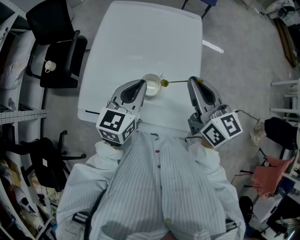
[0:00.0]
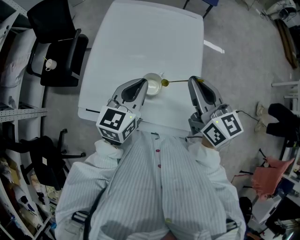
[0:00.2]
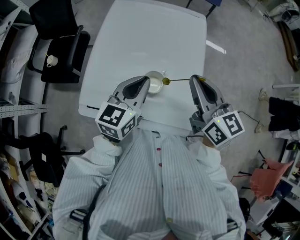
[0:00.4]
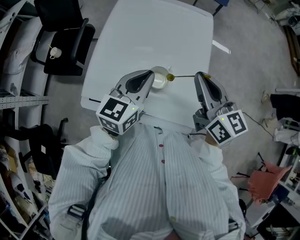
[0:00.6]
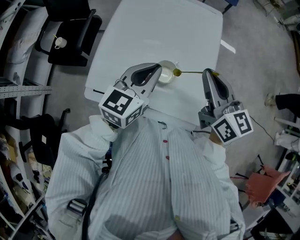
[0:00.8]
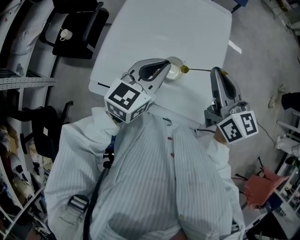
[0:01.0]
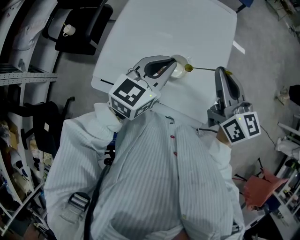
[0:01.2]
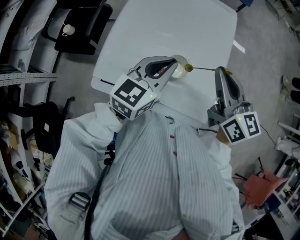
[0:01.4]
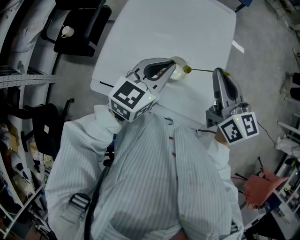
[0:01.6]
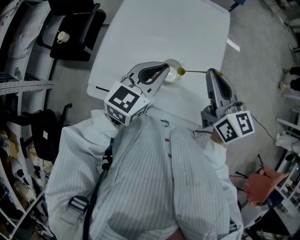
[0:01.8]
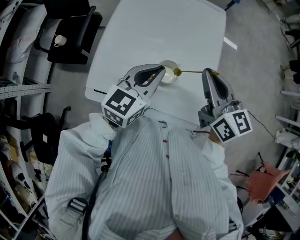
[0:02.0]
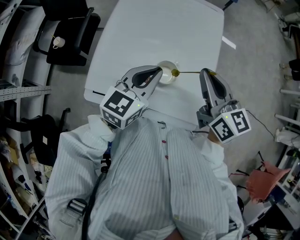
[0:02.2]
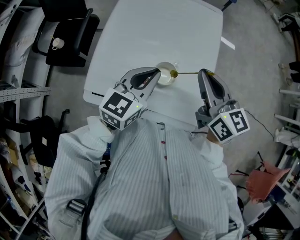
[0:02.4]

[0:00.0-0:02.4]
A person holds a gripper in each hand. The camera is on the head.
0:00.0 to 0:02.4: The grippers make only small movements.

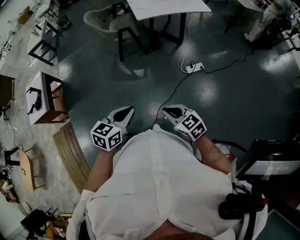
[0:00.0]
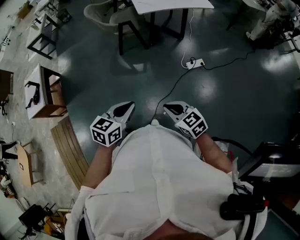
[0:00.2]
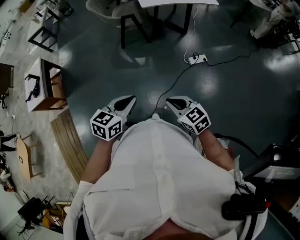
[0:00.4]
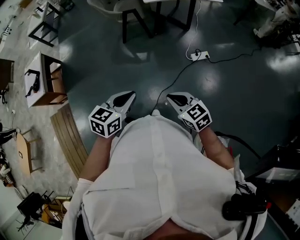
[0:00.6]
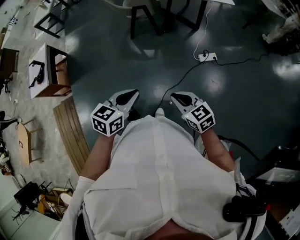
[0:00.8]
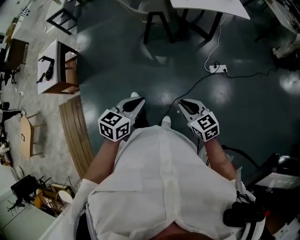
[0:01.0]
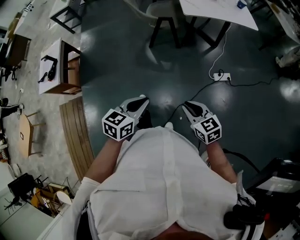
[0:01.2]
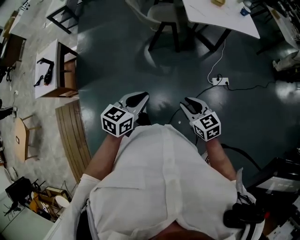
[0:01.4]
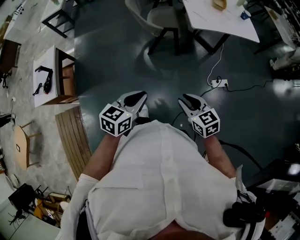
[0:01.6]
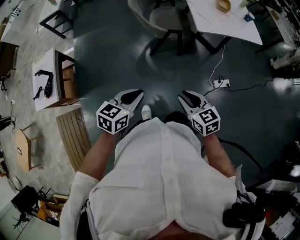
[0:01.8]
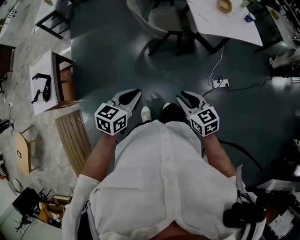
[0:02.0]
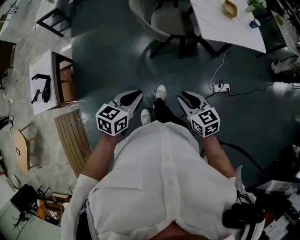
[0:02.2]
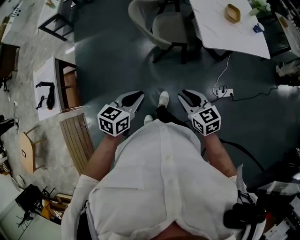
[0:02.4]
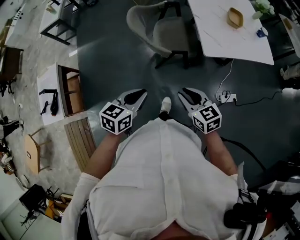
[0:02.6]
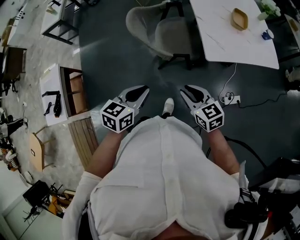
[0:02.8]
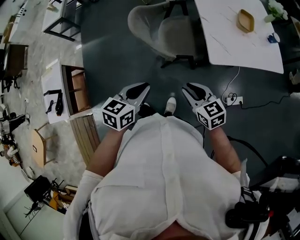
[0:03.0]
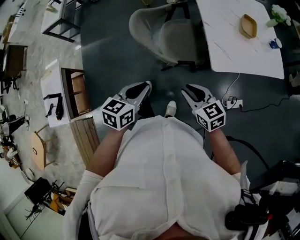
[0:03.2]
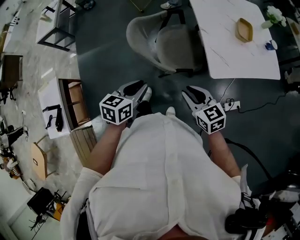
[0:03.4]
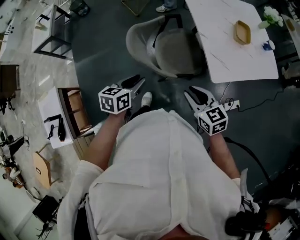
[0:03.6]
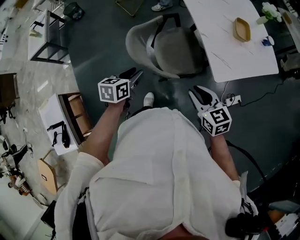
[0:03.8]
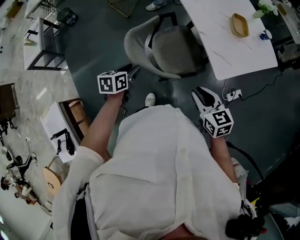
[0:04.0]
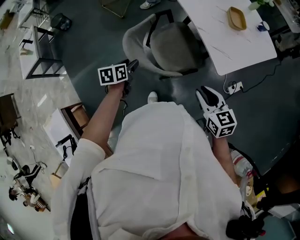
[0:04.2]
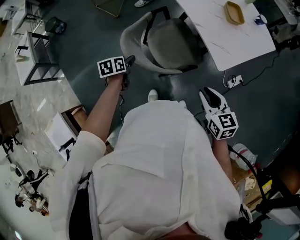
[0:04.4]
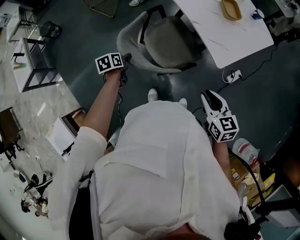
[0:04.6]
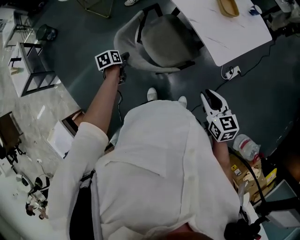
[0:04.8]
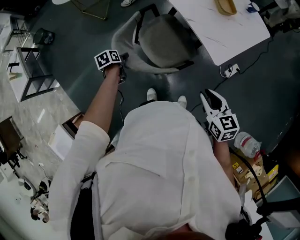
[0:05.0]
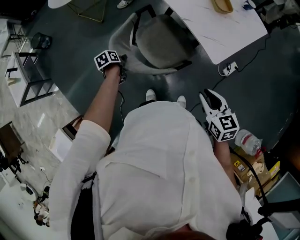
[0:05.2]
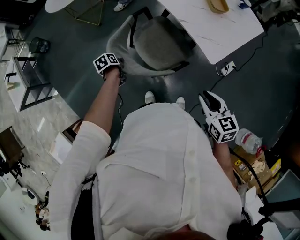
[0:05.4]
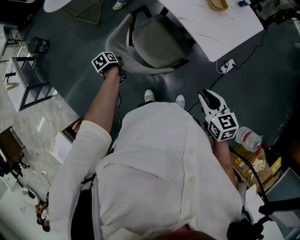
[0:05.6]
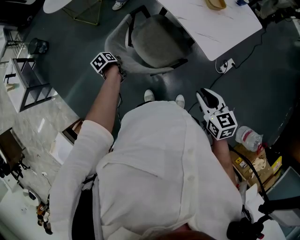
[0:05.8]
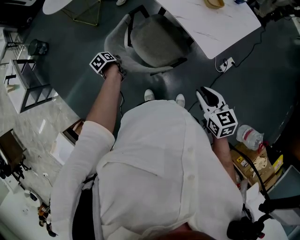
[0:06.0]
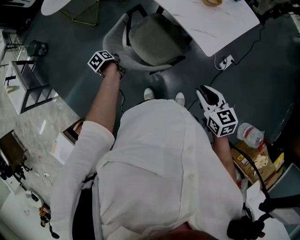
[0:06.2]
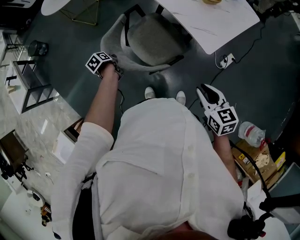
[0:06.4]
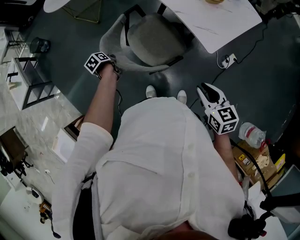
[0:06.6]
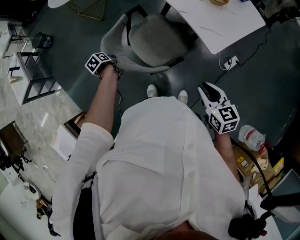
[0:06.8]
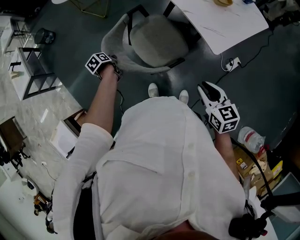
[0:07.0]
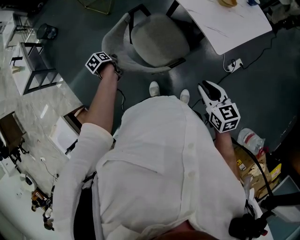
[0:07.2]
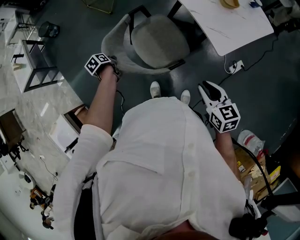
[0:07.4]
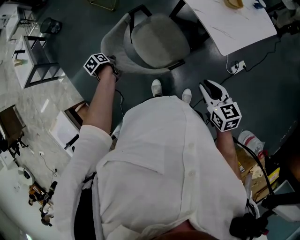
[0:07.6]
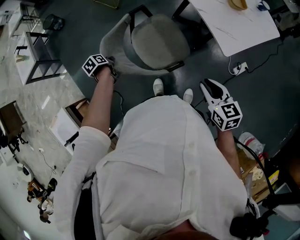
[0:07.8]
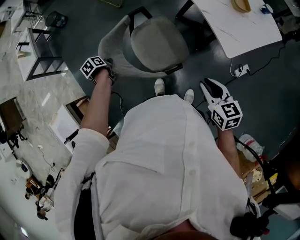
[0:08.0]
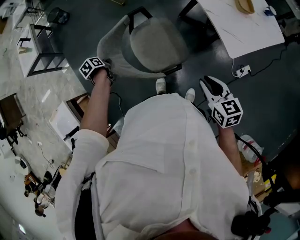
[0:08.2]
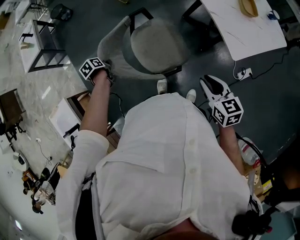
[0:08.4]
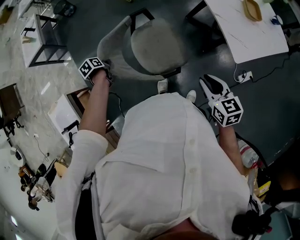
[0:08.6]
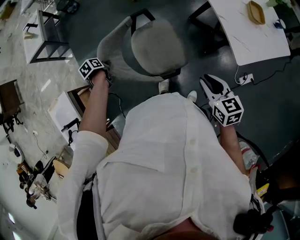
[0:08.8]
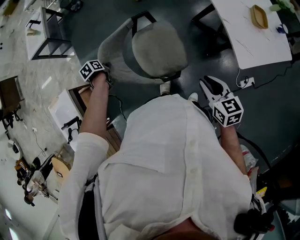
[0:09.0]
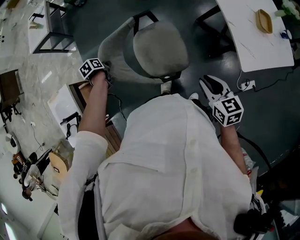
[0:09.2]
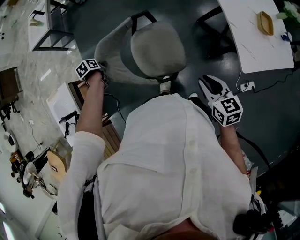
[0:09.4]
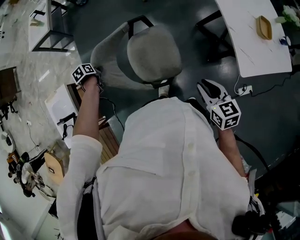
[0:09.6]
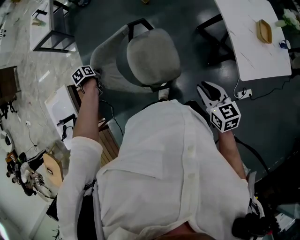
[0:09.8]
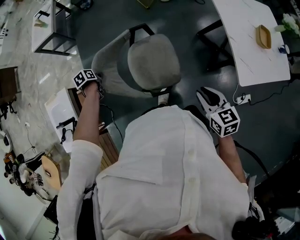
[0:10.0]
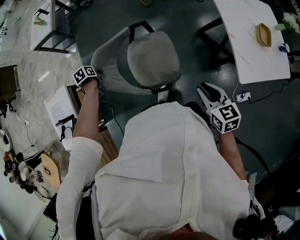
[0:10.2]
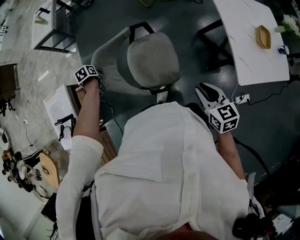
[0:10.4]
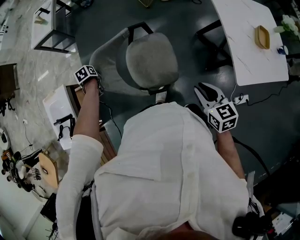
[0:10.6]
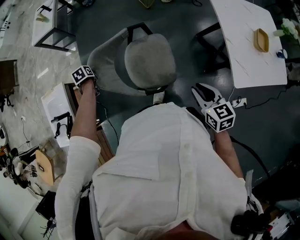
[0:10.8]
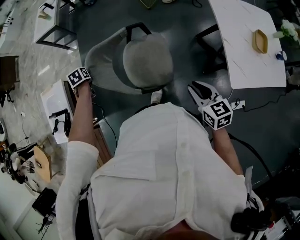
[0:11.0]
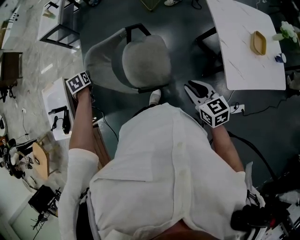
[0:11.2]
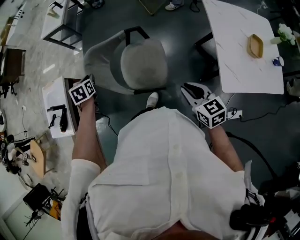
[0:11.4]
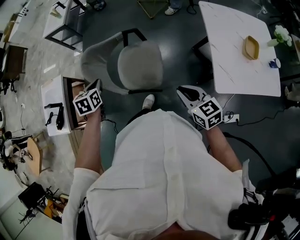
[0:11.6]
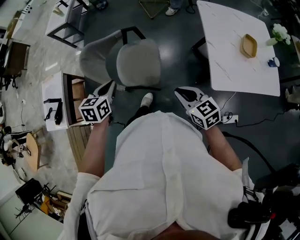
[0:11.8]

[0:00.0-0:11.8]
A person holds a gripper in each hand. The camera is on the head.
0:00.0 to 0:01.4: Both grippers move forward and to the left, some 20 cm.
0:01.4 to 0:03.0: The two grippers travel together, forward, roughly 40 cm.
0:03.0 to 0:04.4: The right gripper goes about 10 cm forward, and changes its angle by some 40 degrees. The left gripper goes about 40 cm forward, to the left and downward, changes its angle by roughly 20 degrees, and opens up.
0:04.4 to 0:06.0: The left gripper shifts approximately 10 cm downward, swivels approximately 30 degrees, and closes its fingers.
0:06.0 to 0:07.4: The left gripper moves to the left and backward, some 10 cm.
0:07.4 to 0:08.8: The right gripper is displaced to the left by some 5 cm; the left gripper heads to the left and backward, covering some 15 cm.
0:08.8 to 0:10.4: The right gripper shifts by roughly 5 cm, while the left gripper goes roughly 10 cm to the left.
0:10.4 to 0:11.8: The right gripper ends up some 10 cm from where it was, and rotates some 20 degrees; the left gripper ends up approximately 40 cm from where it was, and angles its fingers upward, by some 30 degrees.

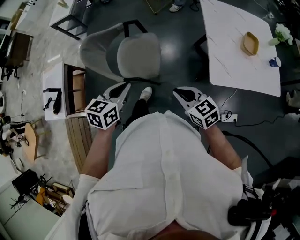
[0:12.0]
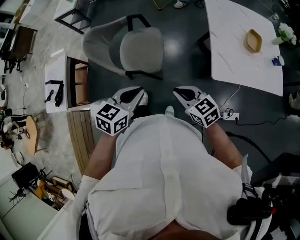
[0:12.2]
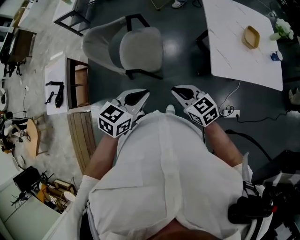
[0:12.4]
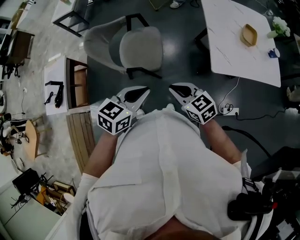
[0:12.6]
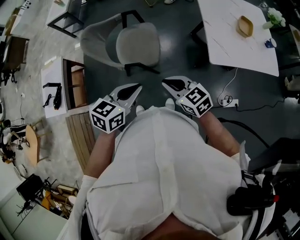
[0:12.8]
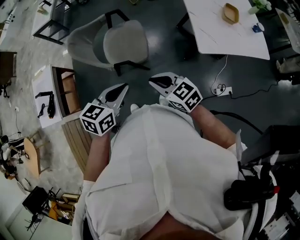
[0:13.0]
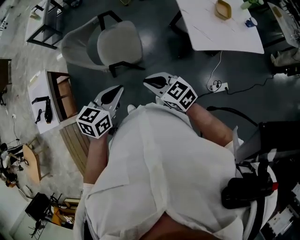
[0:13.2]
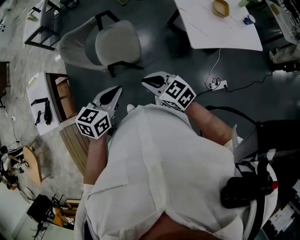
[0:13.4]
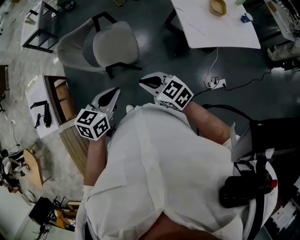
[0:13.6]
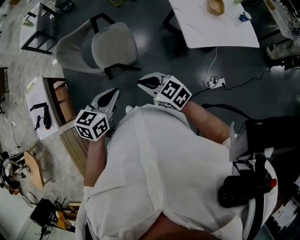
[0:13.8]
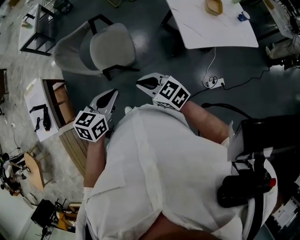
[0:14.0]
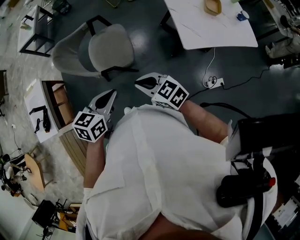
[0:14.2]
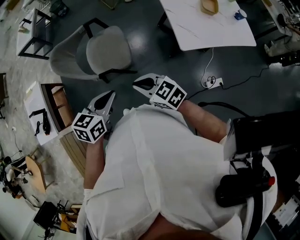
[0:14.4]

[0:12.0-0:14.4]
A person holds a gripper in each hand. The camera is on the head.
0:12.0 to 0:13.2: The right gripper travels to the left and backward by approximately 15 cm. Meanwhile the left gripper is displaced backward by approximately 10 cm.
0:13.2 to 0:14.4: The grippers stay close to where they were, moving slightly.

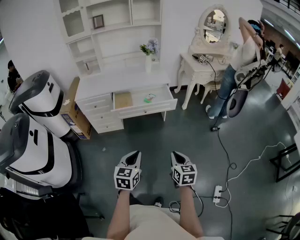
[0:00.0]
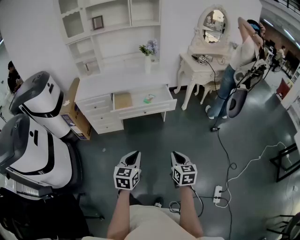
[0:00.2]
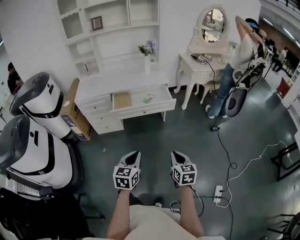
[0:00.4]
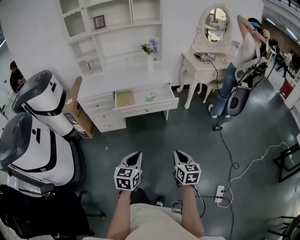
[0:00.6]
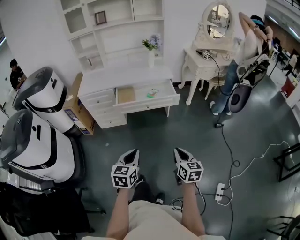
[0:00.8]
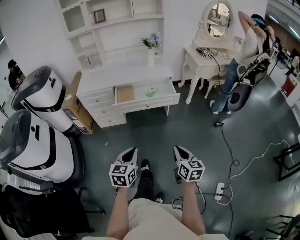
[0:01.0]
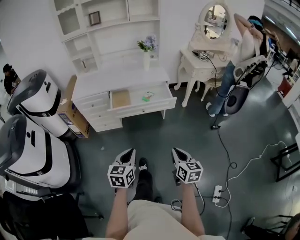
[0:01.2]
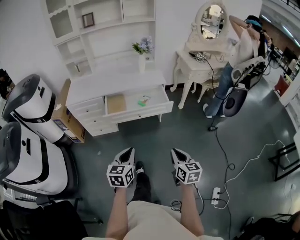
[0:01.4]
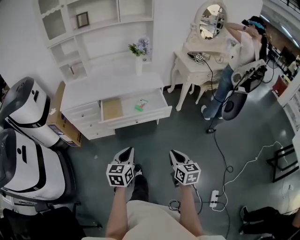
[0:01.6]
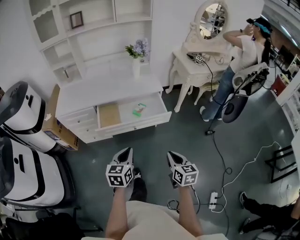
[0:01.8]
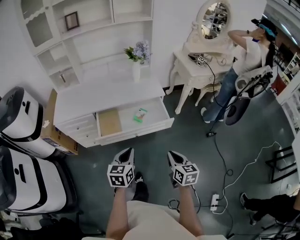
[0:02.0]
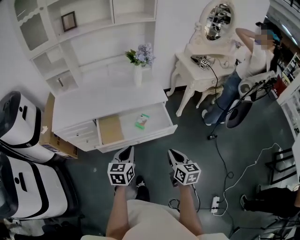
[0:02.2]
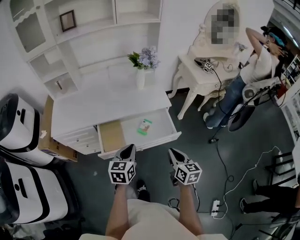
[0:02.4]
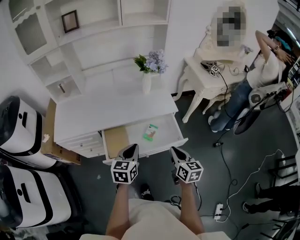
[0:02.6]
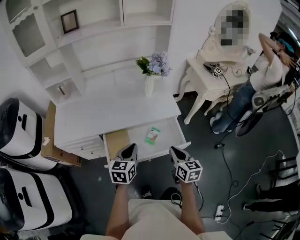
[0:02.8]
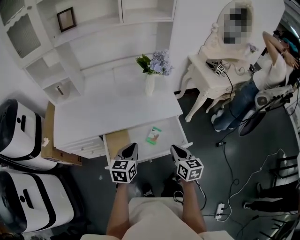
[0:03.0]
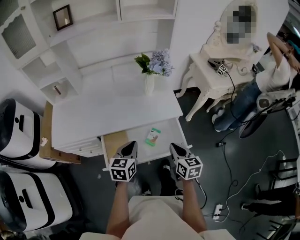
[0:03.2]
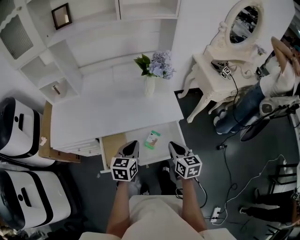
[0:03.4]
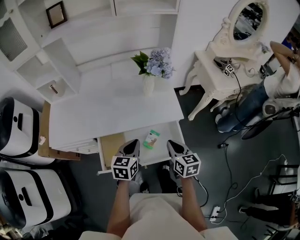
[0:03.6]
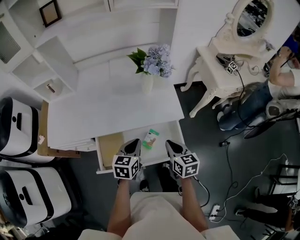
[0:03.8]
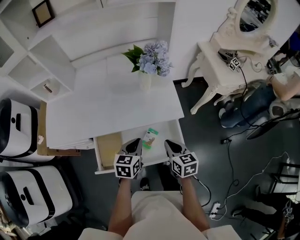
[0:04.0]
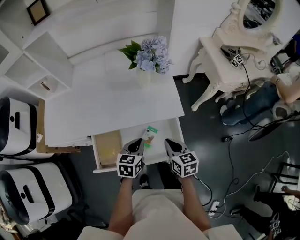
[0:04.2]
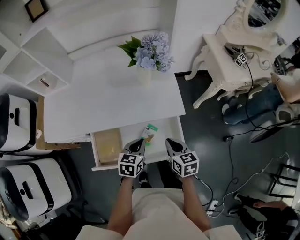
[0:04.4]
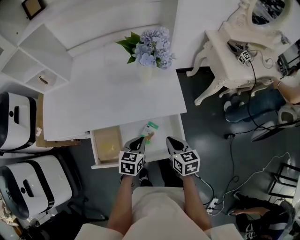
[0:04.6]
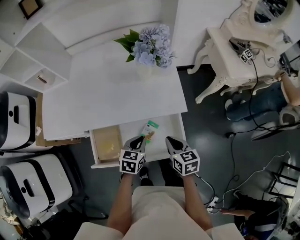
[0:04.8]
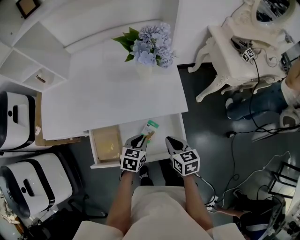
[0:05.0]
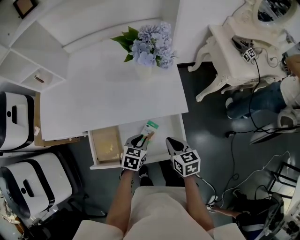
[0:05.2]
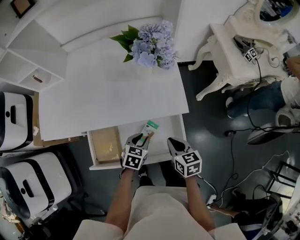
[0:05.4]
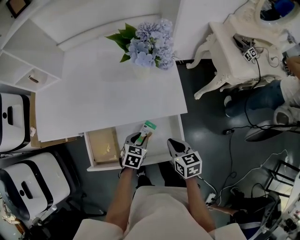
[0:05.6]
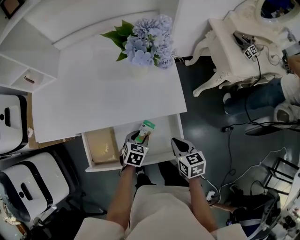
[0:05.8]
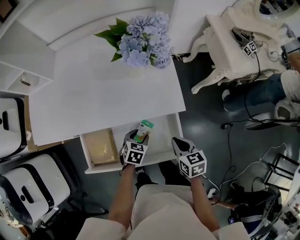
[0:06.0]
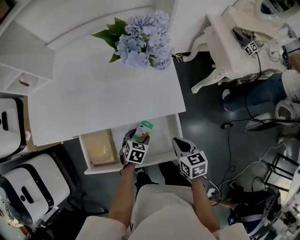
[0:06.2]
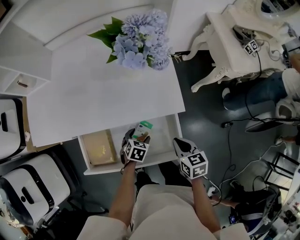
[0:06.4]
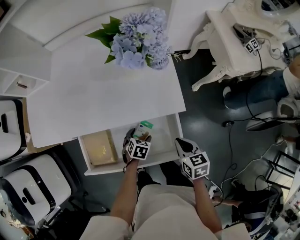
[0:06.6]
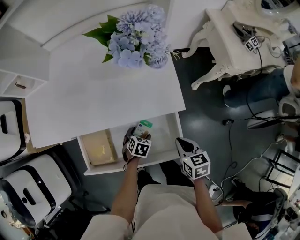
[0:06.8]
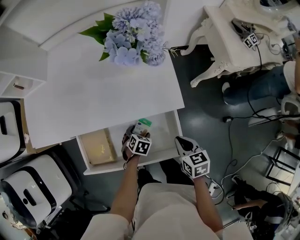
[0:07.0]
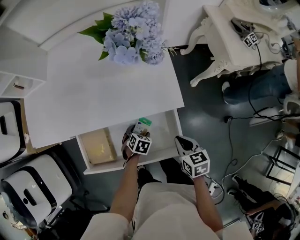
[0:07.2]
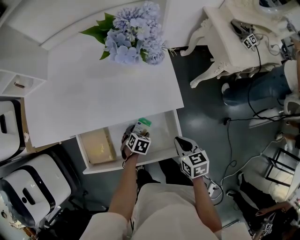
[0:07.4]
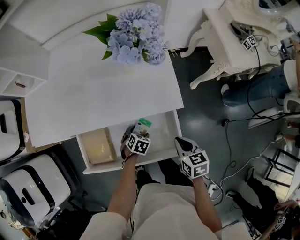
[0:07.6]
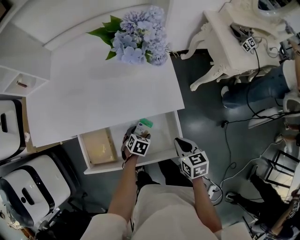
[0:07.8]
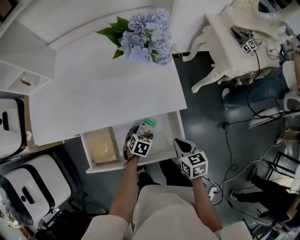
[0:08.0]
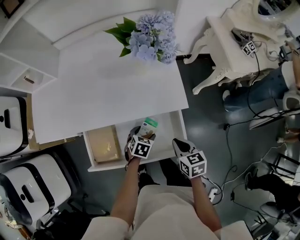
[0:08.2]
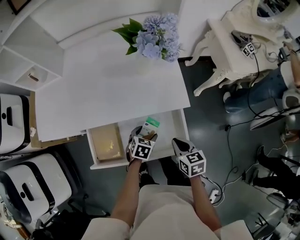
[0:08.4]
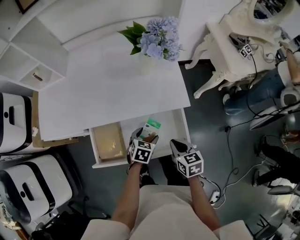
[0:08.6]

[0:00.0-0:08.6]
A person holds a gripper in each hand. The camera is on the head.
0:00.0 to 0:01.4: Both grippers travel together forward, some 10 cm.
0:01.4 to 0:02.8: The pair of grippers is taken forward, some 50 cm.
0:02.8 to 0:04.4: The left gripper moves downward, forward and to the right, approximately 20 cm. Meanwhile the right gripper moves forward and downward, roughly 20 cm.
0:04.4 to 0:05.8: The left gripper shifts approximately 15 cm downward, and opens; the right gripper shifts roughly 5 cm downward.
0:05.8 to 0:07.2: The left gripper is displaced downward by approximately 10 cm, and opens up.
0:07.2 to 0:08.6: The right gripper moves to the left, approximately 5 cm; the left gripper shifts roughly 10 cm upward.
